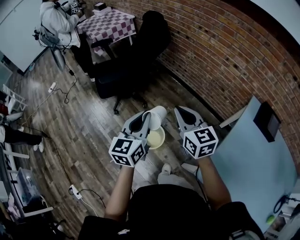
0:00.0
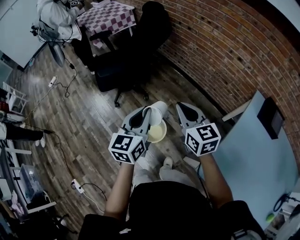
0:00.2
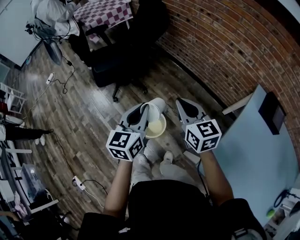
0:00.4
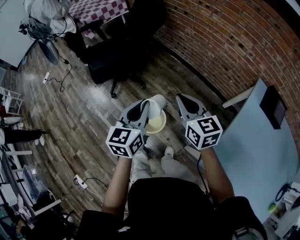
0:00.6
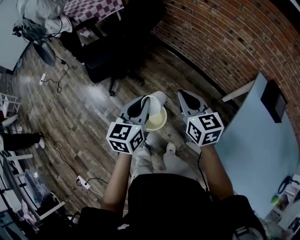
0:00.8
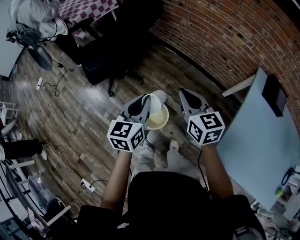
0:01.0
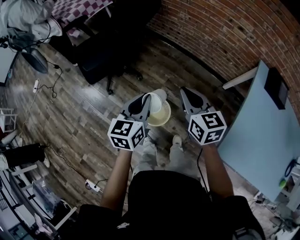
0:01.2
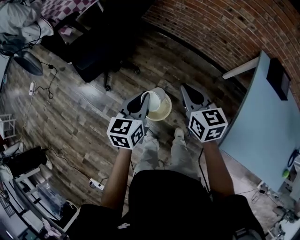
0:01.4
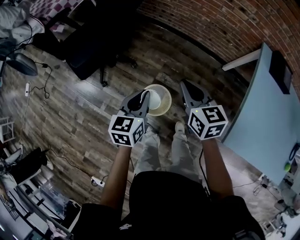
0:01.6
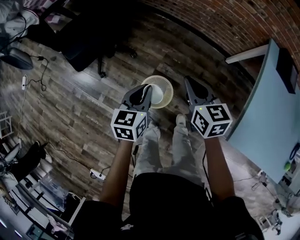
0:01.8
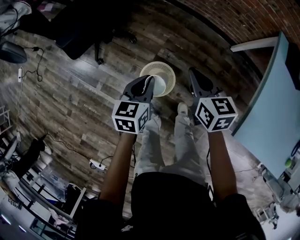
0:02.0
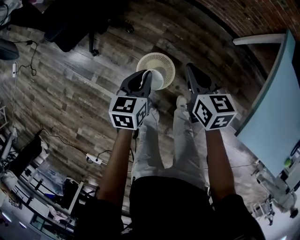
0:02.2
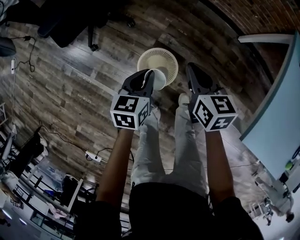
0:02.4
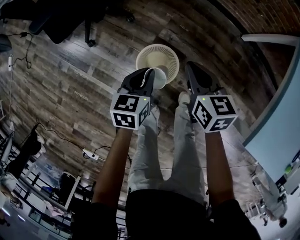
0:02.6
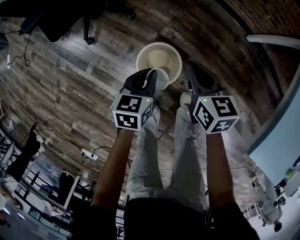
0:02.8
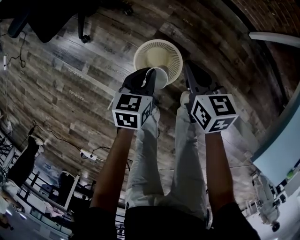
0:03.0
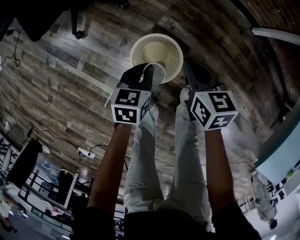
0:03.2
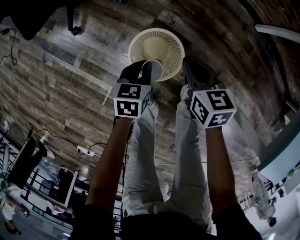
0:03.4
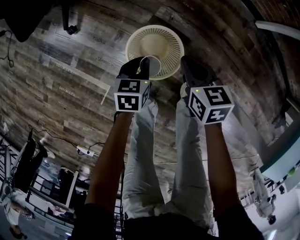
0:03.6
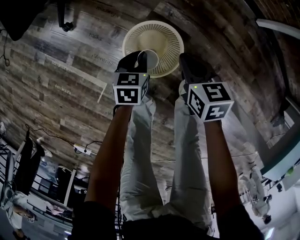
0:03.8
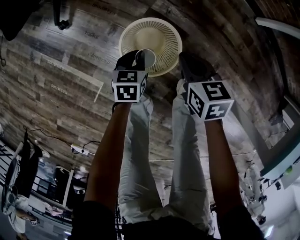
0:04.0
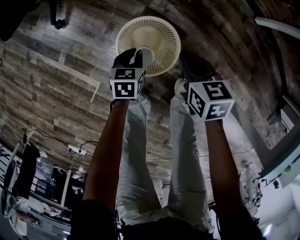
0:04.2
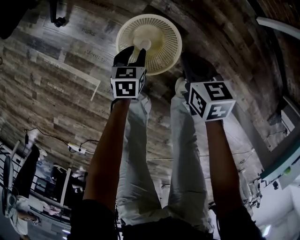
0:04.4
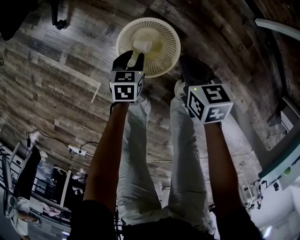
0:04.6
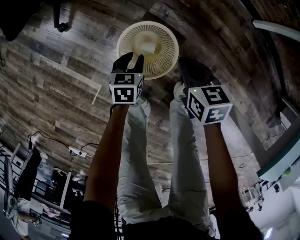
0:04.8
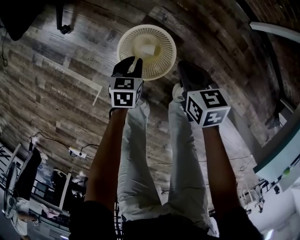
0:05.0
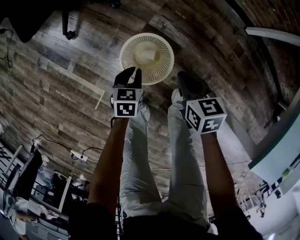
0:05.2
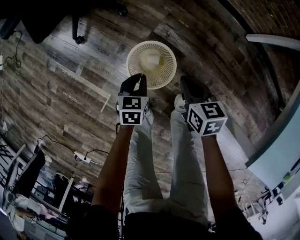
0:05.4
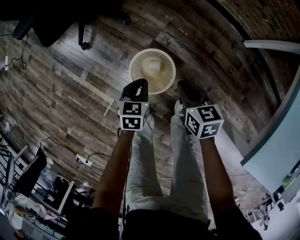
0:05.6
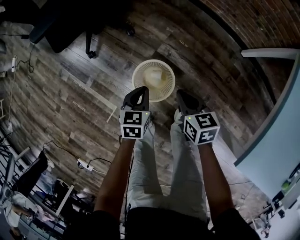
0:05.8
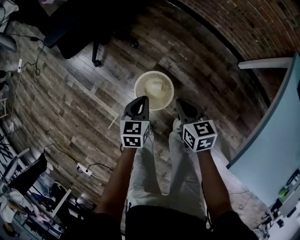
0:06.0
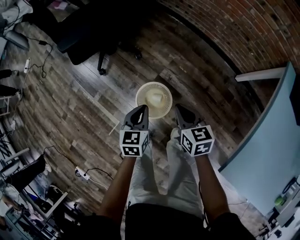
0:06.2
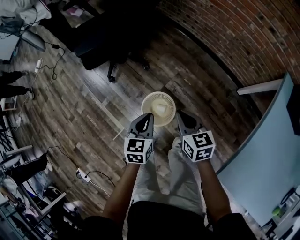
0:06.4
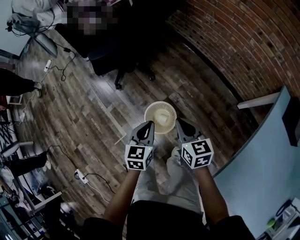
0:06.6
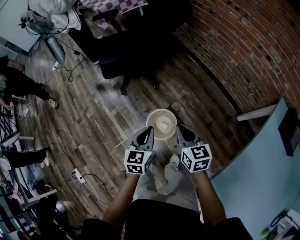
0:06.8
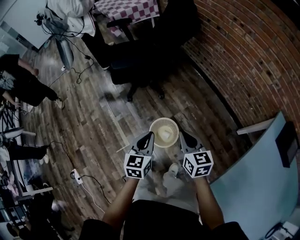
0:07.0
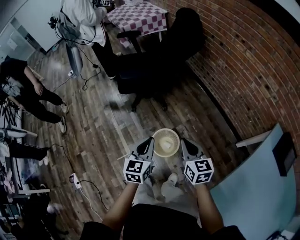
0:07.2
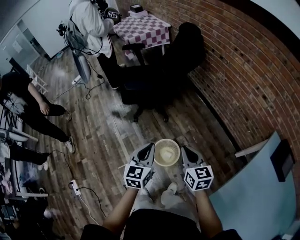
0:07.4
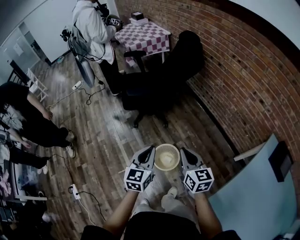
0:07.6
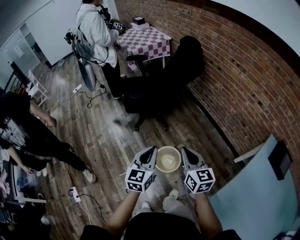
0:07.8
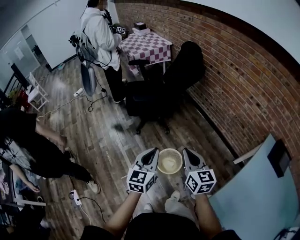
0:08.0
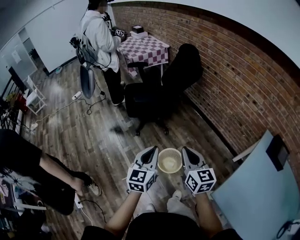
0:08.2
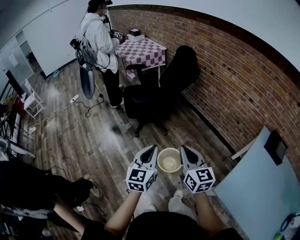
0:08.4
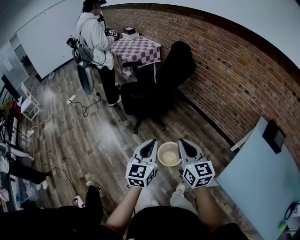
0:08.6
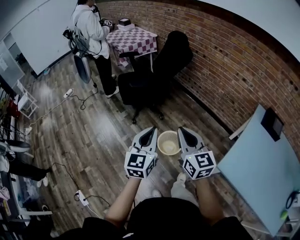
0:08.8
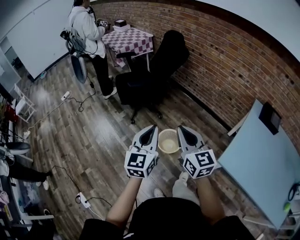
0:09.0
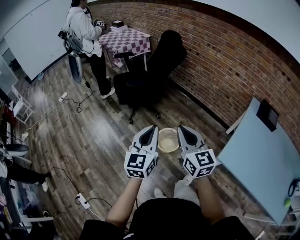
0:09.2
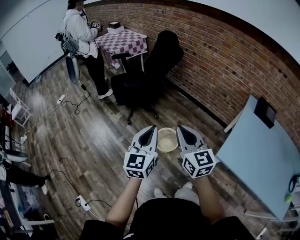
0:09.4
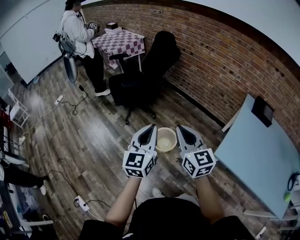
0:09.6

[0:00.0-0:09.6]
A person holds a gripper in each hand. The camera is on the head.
0:00.0 to 0:01.6: The right gripper shifts some 15 cm downward and forward, and turns by approximately 30 degrees. The left gripper goes about 20 cm downward, forward and to the left, and turns by some 30 degrees.
0:01.6 to 0:03.2: Both grippers move downward, some 40 cm. The left gripper changes its angle by some 20 degrees.
0:03.2 to 0:04.8: Both grippers move downward, roughly 15 cm. The left gripper opens its fingers.
0:04.8 to 0:06.4: The two grippers go some 35 cm upward. The right gripper rotates approximately 20 degrees. Meanwhile the left gripper swivels roughly 30 degrees, and closes.
0:06.4 to 0:08.0: The grippers both shift upward by some 30 cm. The right gripper swivels about 20 degrees; the left gripper changes its angle by about 30 degrees.
0:08.0 to 0:09.6: The right gripper shifts about 20 cm backward, to the left and upward, while the left gripper heads backward, upward and to the left, covering about 20 cm.

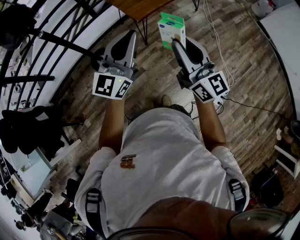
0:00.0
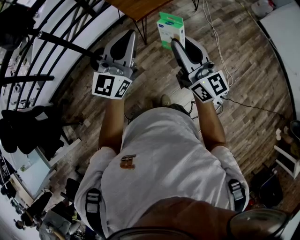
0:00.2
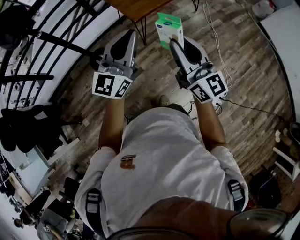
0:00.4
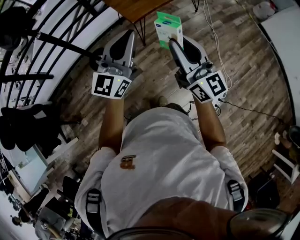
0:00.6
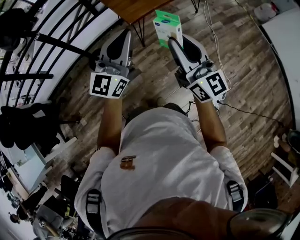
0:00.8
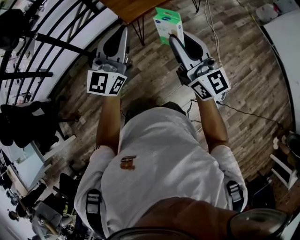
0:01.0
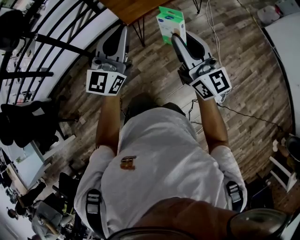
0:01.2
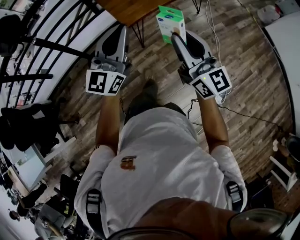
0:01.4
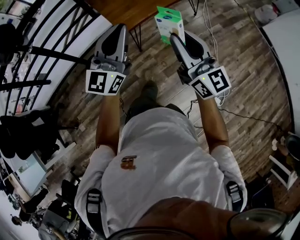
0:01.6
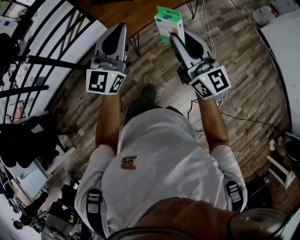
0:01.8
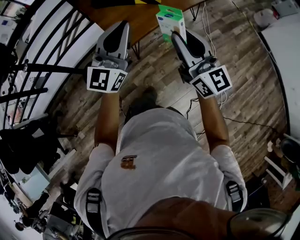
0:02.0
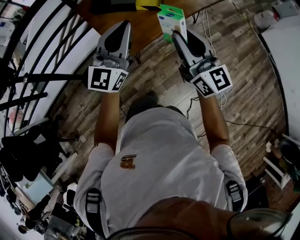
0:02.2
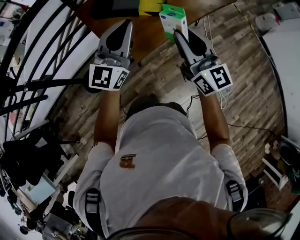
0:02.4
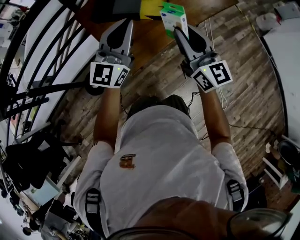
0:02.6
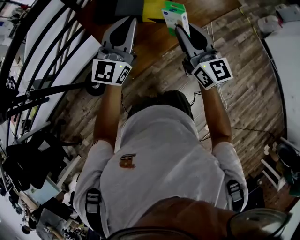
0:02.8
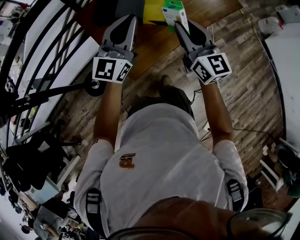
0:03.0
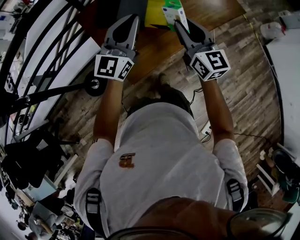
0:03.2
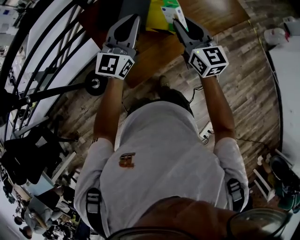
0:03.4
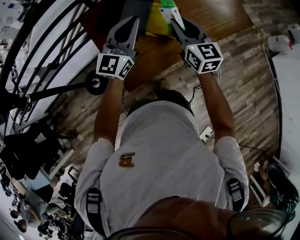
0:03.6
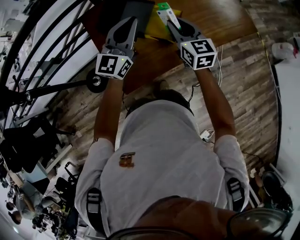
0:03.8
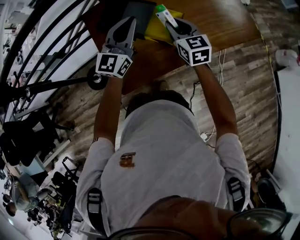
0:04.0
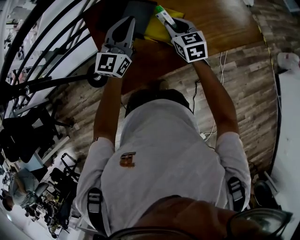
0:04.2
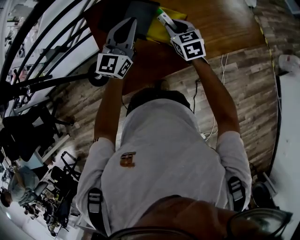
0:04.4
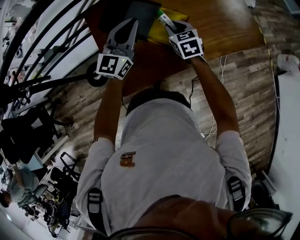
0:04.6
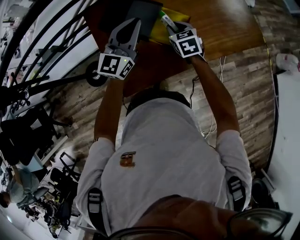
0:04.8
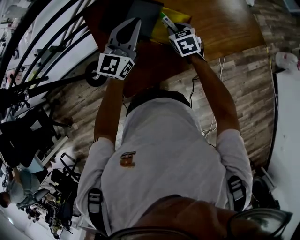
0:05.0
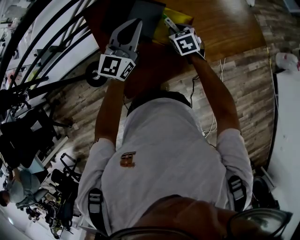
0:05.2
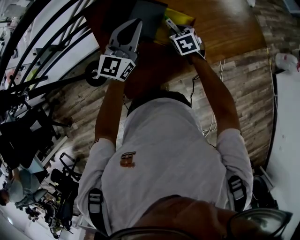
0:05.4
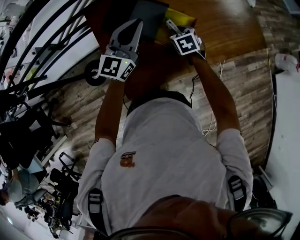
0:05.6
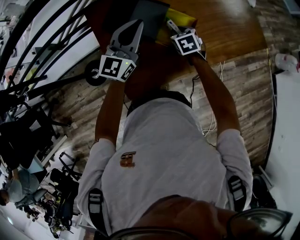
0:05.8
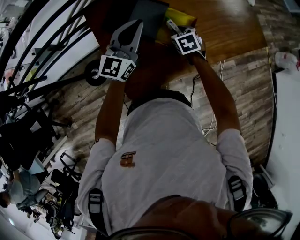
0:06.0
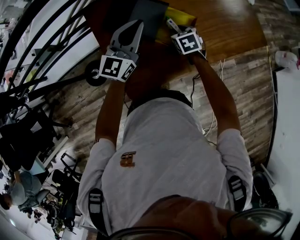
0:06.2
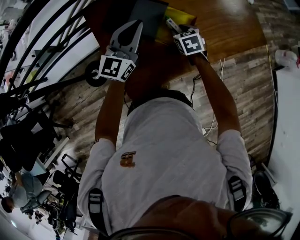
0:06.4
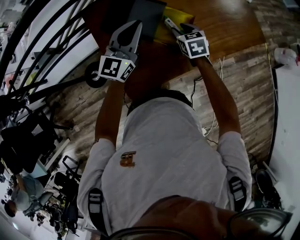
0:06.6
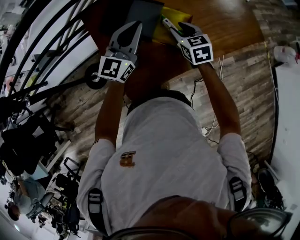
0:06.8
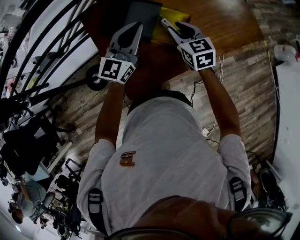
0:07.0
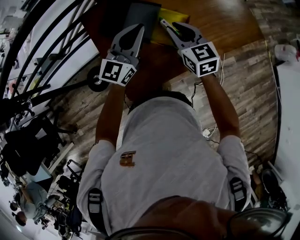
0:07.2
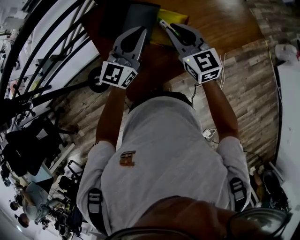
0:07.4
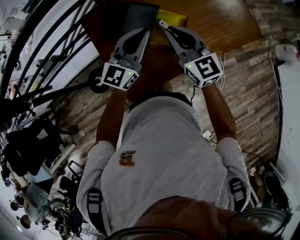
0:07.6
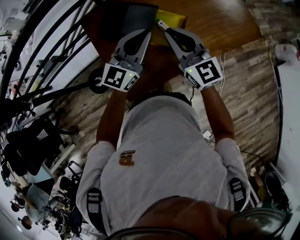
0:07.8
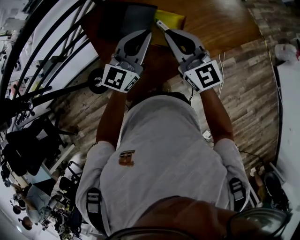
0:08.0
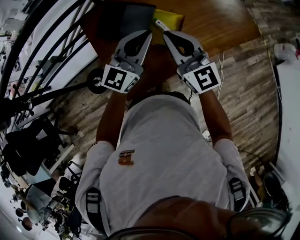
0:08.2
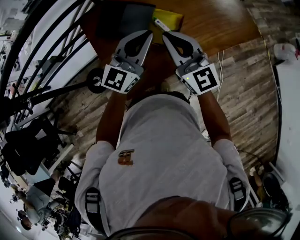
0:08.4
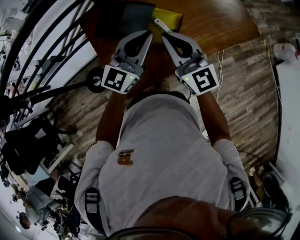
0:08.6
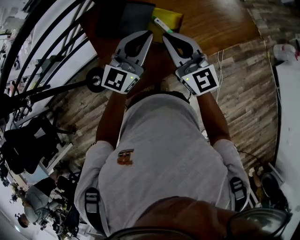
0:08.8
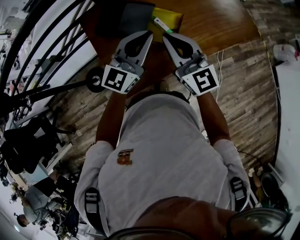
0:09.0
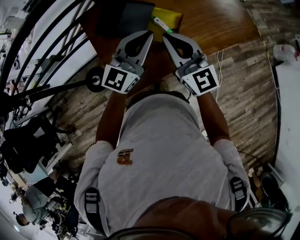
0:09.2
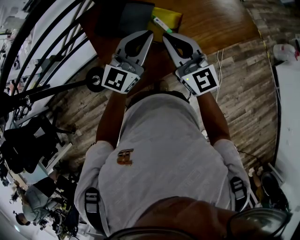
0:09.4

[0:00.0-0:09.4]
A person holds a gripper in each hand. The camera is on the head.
0:00.0 to 0:01.6: The two grippers go some 15 cm forward and to the right.
0:01.6 to 0:03.2: Both grippers are carried forward, about 50 cm.
0:03.2 to 0:04.8: The right gripper shifts about 30 cm forward and downward, and tilts its fingers approximately 40 degrees downward, while the left gripper travels forward and downward by approximately 15 cm.
0:04.8 to 0:06.2: The right gripper is displaced downward by approximately 5 cm.
0:06.2 to 0:07.8: The right gripper travels upward by approximately 25 cm, tilts its fingers roughly 50 degrees upward, and closes up. Meanwhile the left gripper moves to the right and backward, roughly 10 cm.
0:07.8 to 0:09.4: The grippers move only a little.

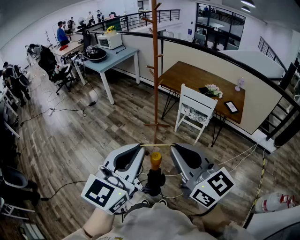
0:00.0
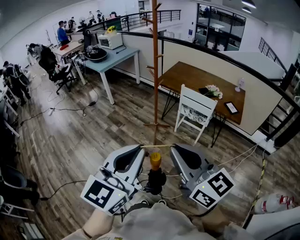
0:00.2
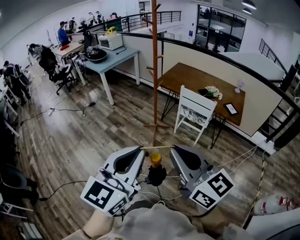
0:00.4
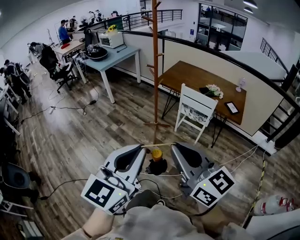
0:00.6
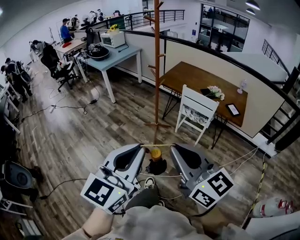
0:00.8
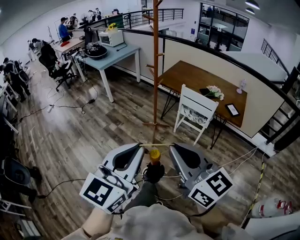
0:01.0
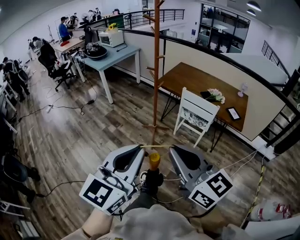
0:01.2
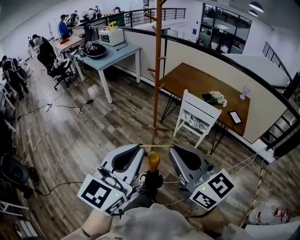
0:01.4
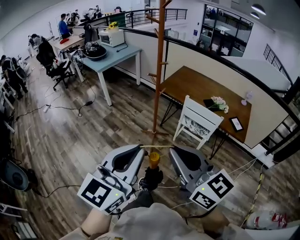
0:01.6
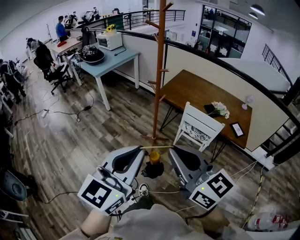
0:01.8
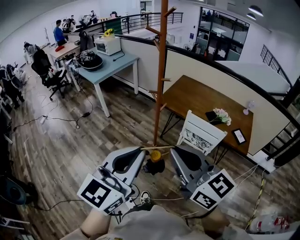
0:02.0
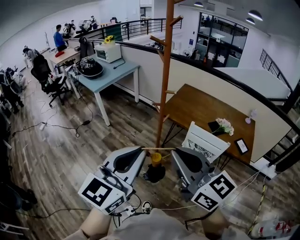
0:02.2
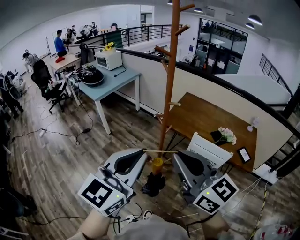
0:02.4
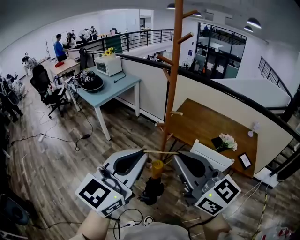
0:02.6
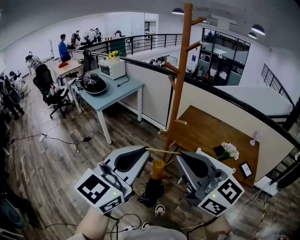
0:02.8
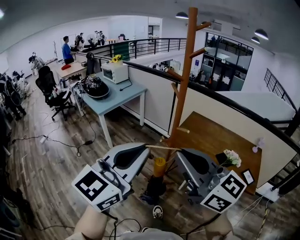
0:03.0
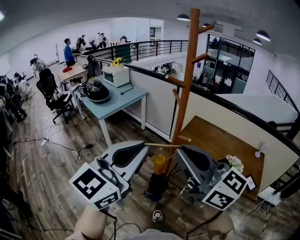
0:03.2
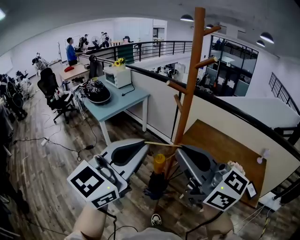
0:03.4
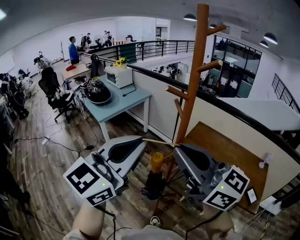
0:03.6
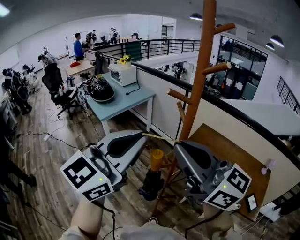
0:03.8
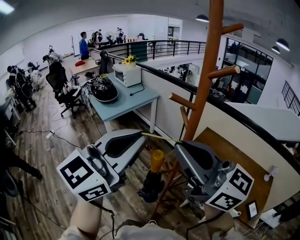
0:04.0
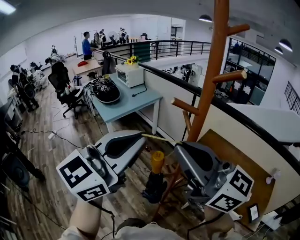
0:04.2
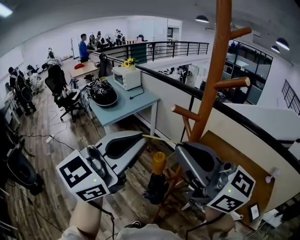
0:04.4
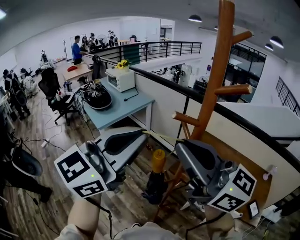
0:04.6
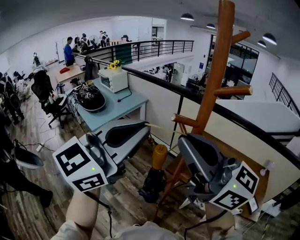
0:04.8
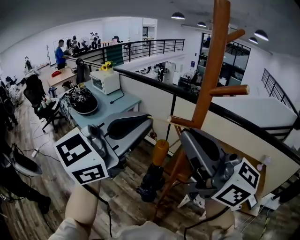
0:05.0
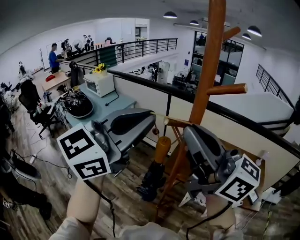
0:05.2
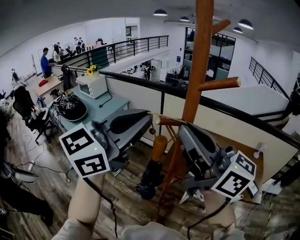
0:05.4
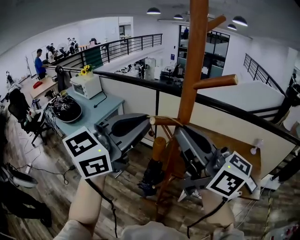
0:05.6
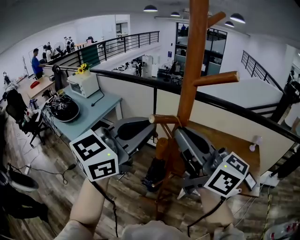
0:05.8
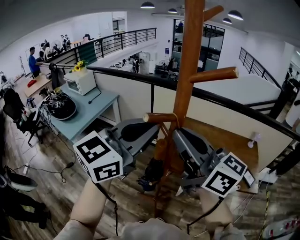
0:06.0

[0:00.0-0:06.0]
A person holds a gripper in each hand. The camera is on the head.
0:00.0 to 0:01.6: The two grippers go about 15 cm forward.
0:01.6 to 0:03.0: The grippers both shift forward by about 35 cm.
0:03.0 to 0:04.4: Both grippers travel together forward, about 25 cm.
0:04.4 to 0:06.0: The left gripper shifts by roughly 15 cm, and swivels roughly 30 degrees. Meanwhile the right gripper moves some 10 cm, and turns by roughly 30 degrees.
